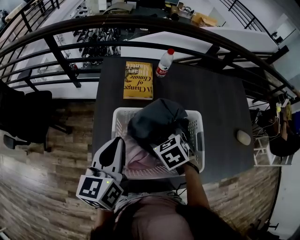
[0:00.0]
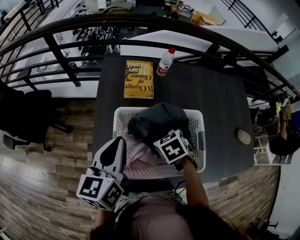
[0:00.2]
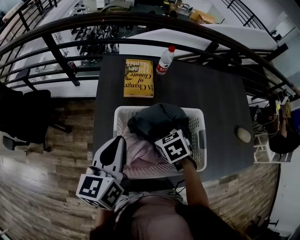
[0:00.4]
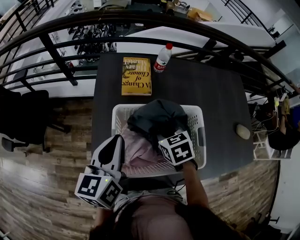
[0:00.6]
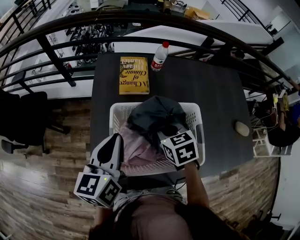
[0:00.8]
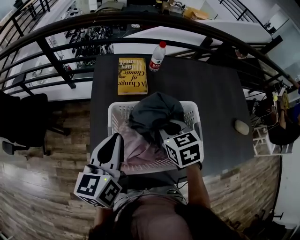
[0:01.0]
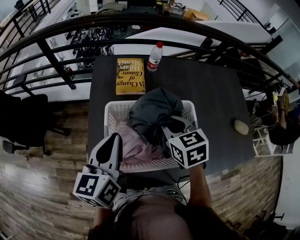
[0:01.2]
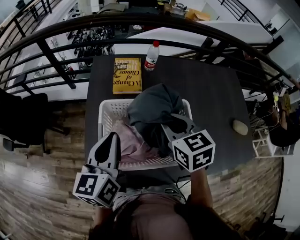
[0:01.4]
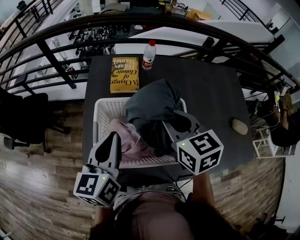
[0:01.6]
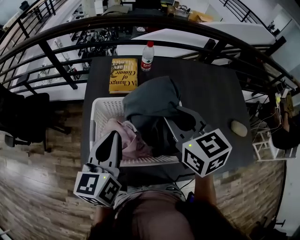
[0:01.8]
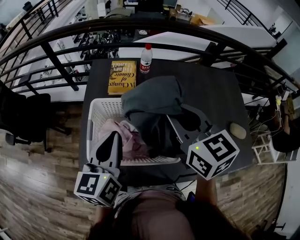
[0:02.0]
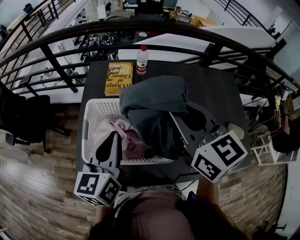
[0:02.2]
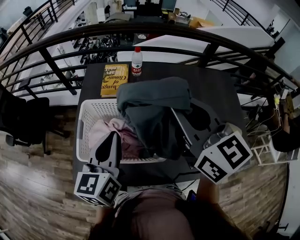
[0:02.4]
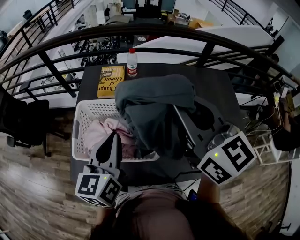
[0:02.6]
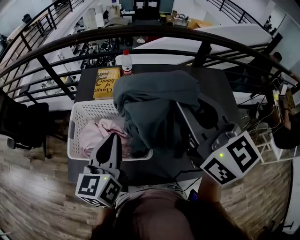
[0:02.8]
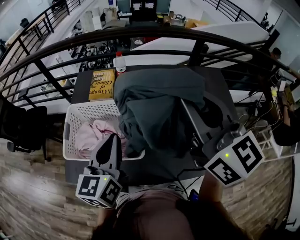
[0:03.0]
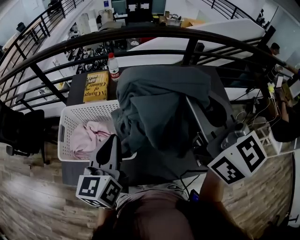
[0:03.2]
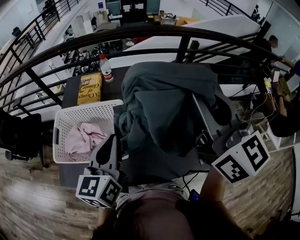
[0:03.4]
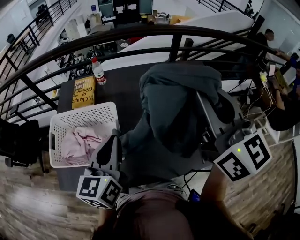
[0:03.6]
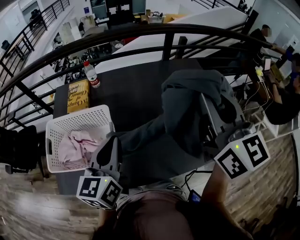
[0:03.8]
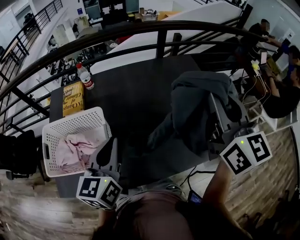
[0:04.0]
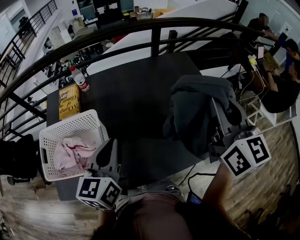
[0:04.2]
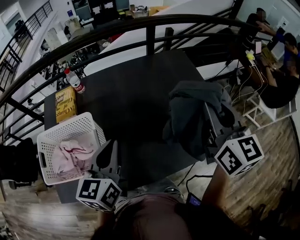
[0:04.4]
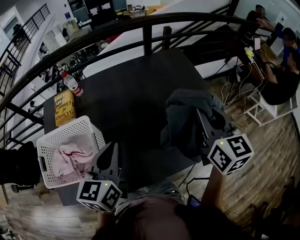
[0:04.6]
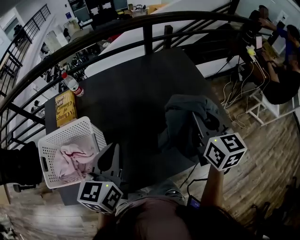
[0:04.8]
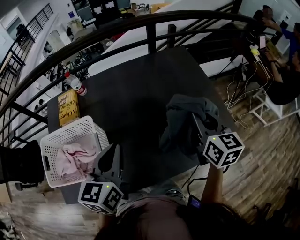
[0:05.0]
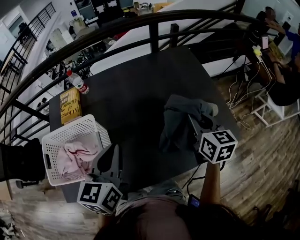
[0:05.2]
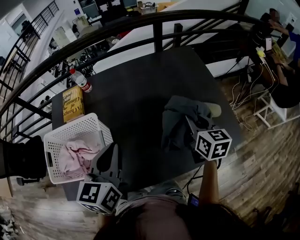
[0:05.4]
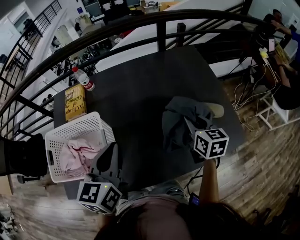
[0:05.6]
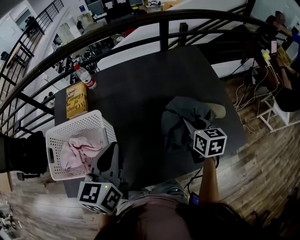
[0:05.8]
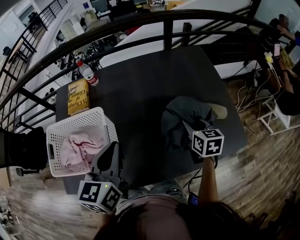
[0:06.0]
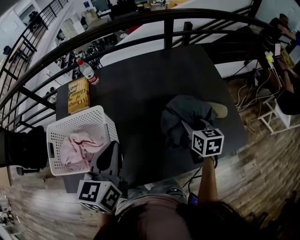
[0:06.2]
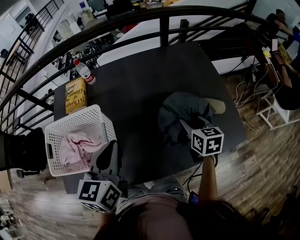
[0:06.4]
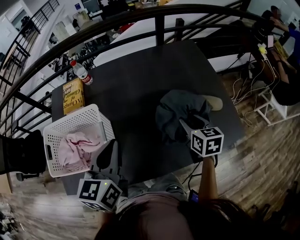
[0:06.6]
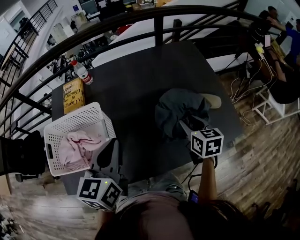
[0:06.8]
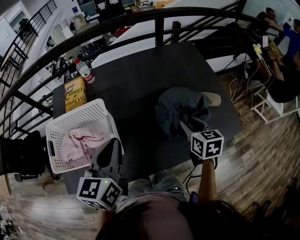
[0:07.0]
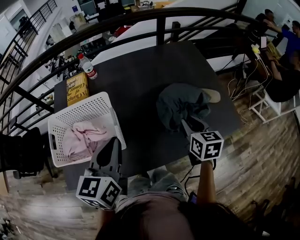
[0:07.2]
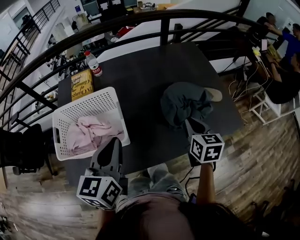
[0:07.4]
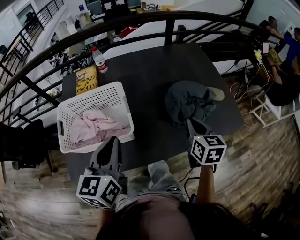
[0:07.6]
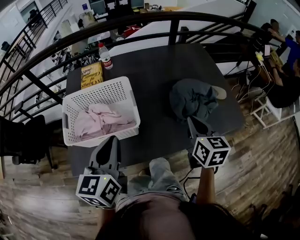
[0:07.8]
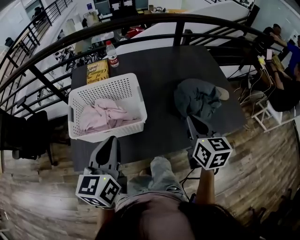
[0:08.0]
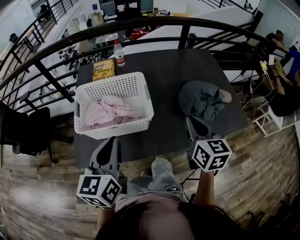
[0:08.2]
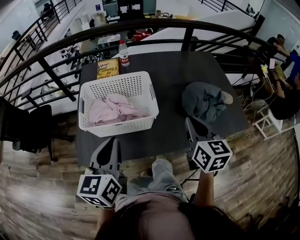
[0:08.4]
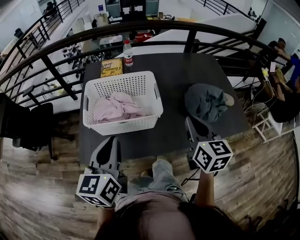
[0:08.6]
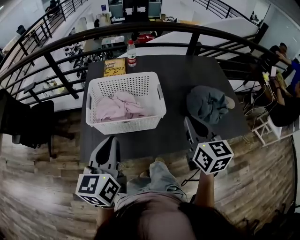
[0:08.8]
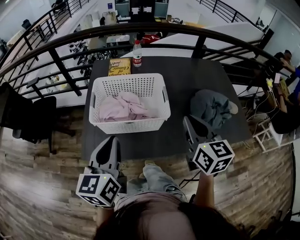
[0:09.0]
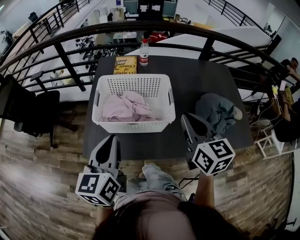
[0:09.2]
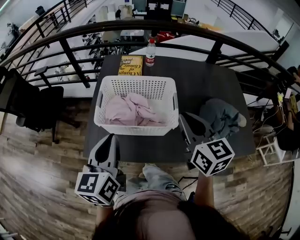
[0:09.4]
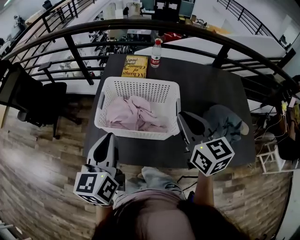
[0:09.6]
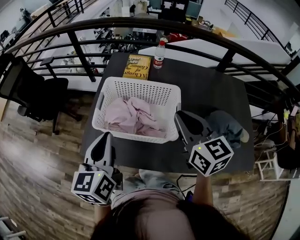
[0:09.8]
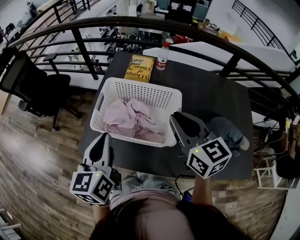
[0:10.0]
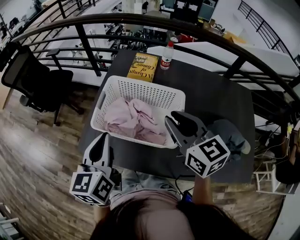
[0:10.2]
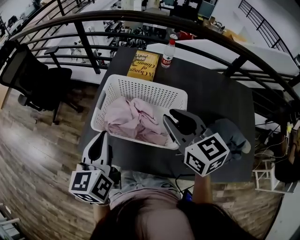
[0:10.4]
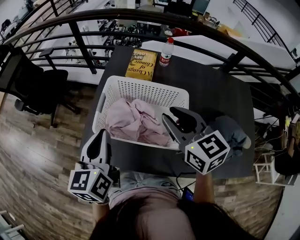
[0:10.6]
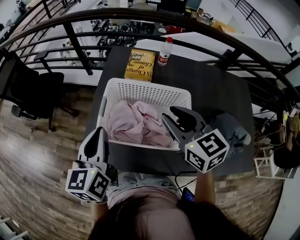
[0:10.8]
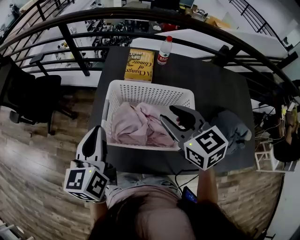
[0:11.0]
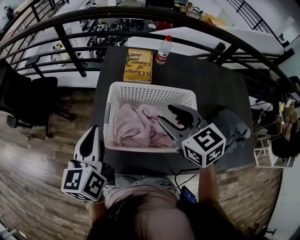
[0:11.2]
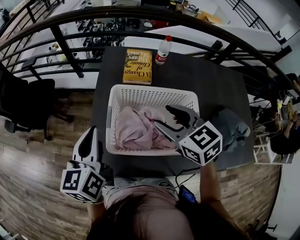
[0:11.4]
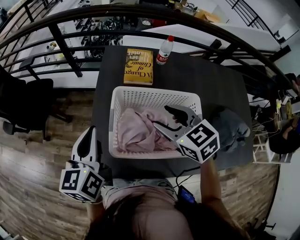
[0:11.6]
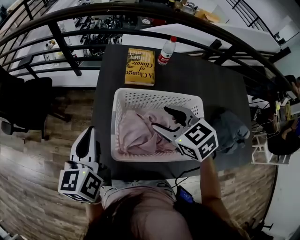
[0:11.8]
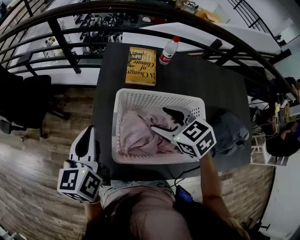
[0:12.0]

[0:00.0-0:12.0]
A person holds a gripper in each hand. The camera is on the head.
0:00.0 to 0:01.6: The right gripper moves upward, approximately 15 cm, tips its fingers upward by approximately 30 degrees, and closes its fingers. Meanwhile the left gripper goes roughly 5 cm to the right.
0:01.6 to 0:03.0: The left gripper heads to the right, covering some 15 cm. Meanwhile the right gripper heads upward, to the right and backward, covering about 30 cm, and rotates about 30 degrees.
0:03.0 to 0:04.4: The left gripper shifts some 20 cm to the right. Meanwhile the right gripper is displaced to the right by roughly 30 cm, and swivels roughly 30 degrees.
0:04.4 to 0:06.0: The right gripper moves downward, some 25 cm, and changes its angle by about 30 degrees.
0:06.0 to 0:07.6: The left gripper heads backward and to the left, covering approximately 15 cm, while the right gripper travels backward, to the left and upward by roughly 20 cm, and closes up.
0:07.6 to 0:09.0: The left gripper moves to the left and backward, roughly 20 cm, while the right gripper travels to the left and upward by roughly 20 cm, and turns by about 20 degrees.
0:09.0 to 0:10.4: The right gripper changes place by some 15 cm, and rotates about 30 degrees. Meanwhile the left gripper moves some 10 cm, and rotates some 20 degrees.
0:10.4 to 0:12.0: The left gripper goes some 20 cm forward and to the left; the right gripper shifts about 20 cm downward, forward and to the left, swivels about 30 degrees, and opens.

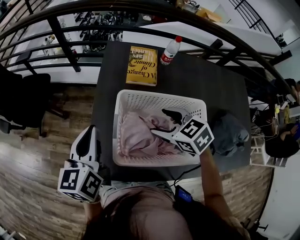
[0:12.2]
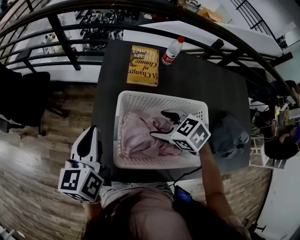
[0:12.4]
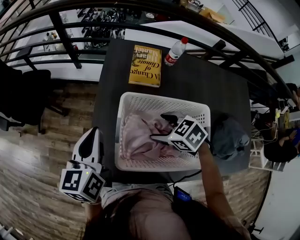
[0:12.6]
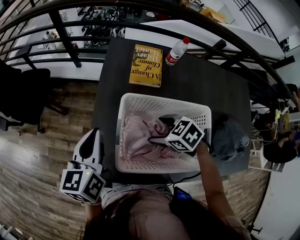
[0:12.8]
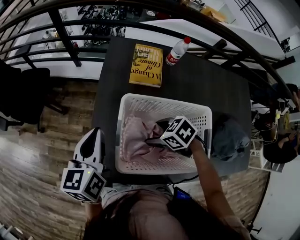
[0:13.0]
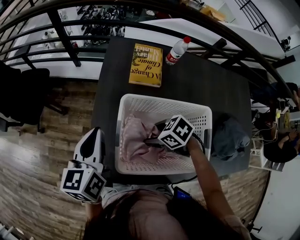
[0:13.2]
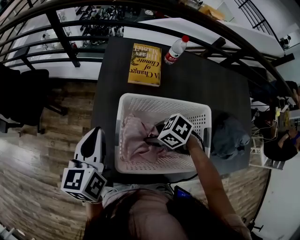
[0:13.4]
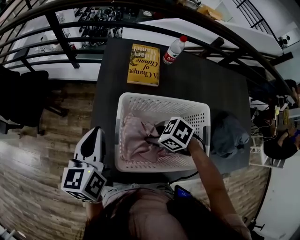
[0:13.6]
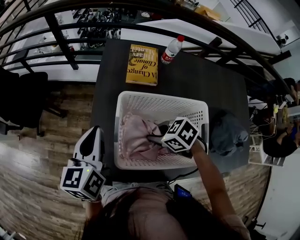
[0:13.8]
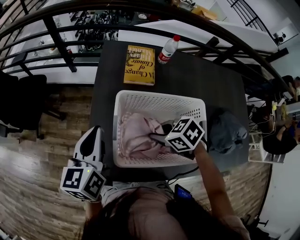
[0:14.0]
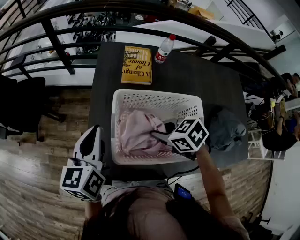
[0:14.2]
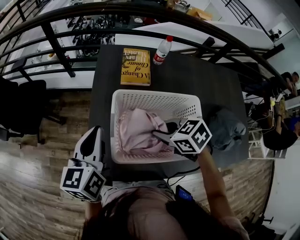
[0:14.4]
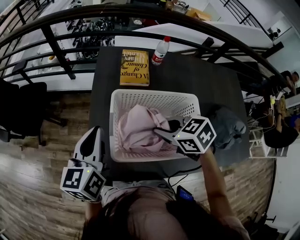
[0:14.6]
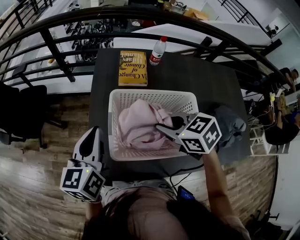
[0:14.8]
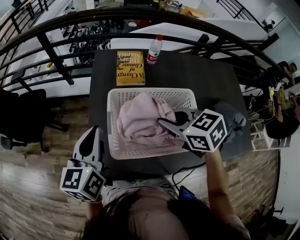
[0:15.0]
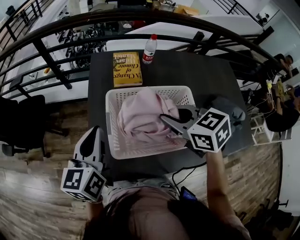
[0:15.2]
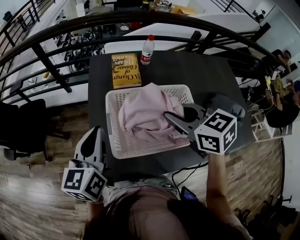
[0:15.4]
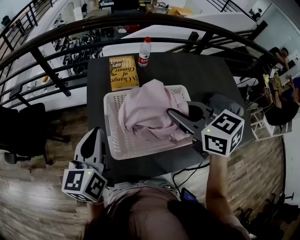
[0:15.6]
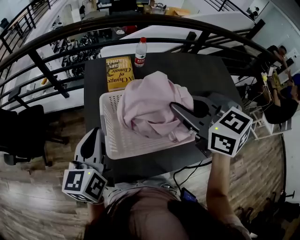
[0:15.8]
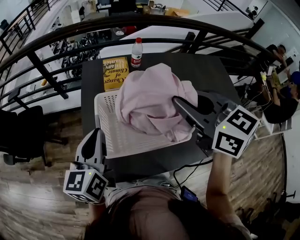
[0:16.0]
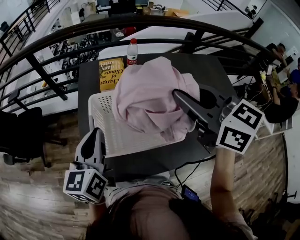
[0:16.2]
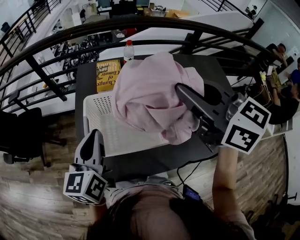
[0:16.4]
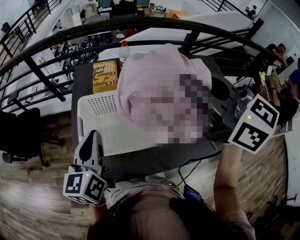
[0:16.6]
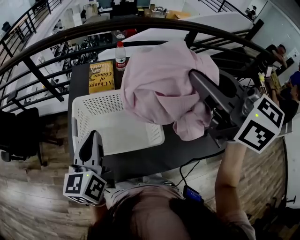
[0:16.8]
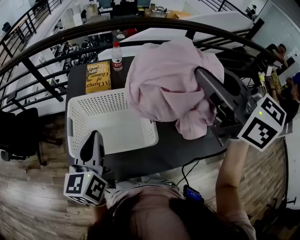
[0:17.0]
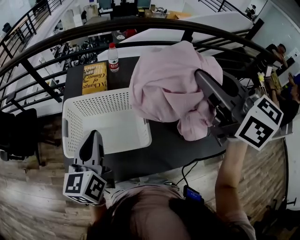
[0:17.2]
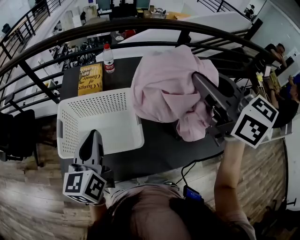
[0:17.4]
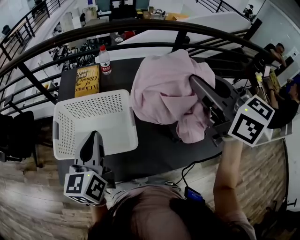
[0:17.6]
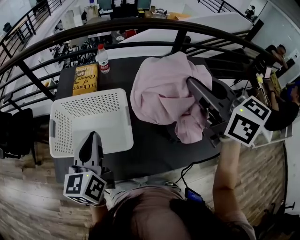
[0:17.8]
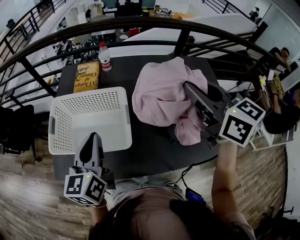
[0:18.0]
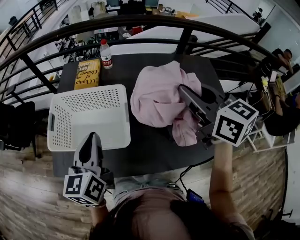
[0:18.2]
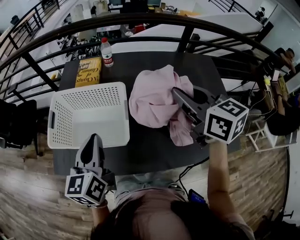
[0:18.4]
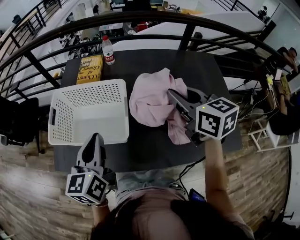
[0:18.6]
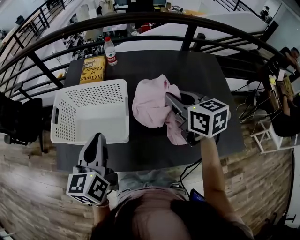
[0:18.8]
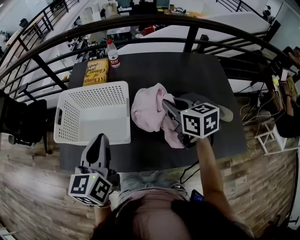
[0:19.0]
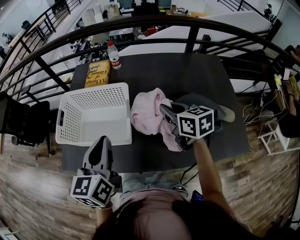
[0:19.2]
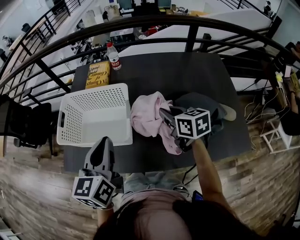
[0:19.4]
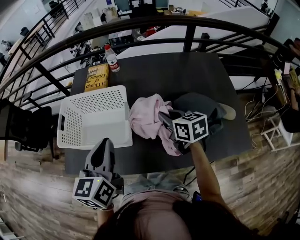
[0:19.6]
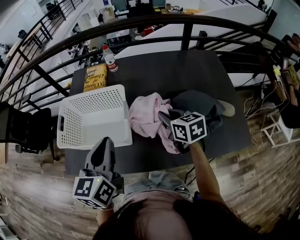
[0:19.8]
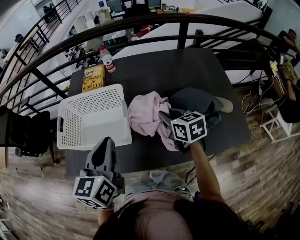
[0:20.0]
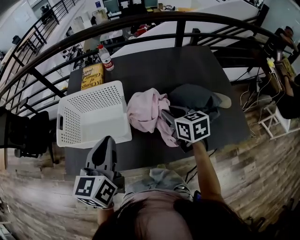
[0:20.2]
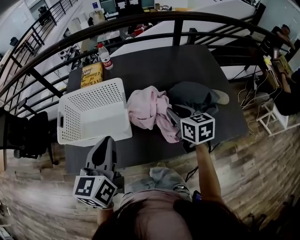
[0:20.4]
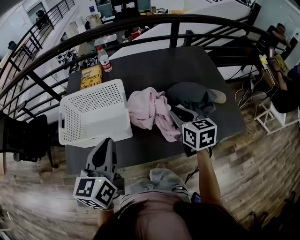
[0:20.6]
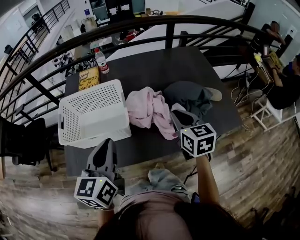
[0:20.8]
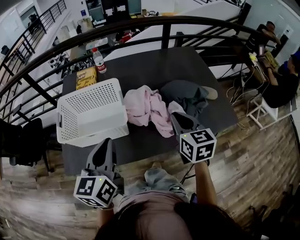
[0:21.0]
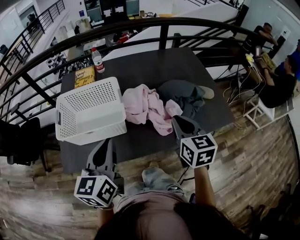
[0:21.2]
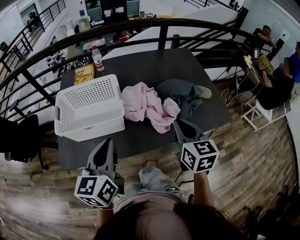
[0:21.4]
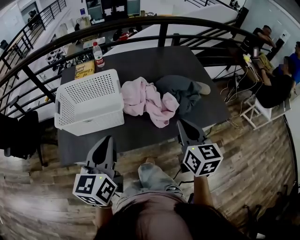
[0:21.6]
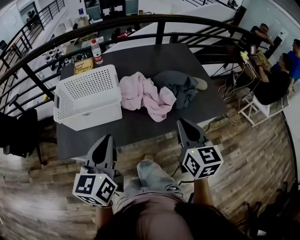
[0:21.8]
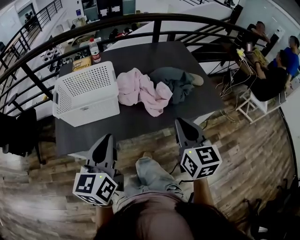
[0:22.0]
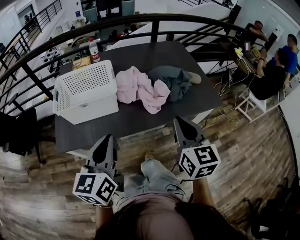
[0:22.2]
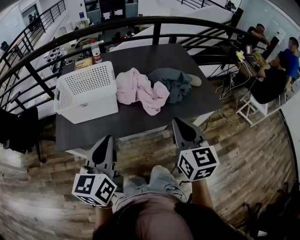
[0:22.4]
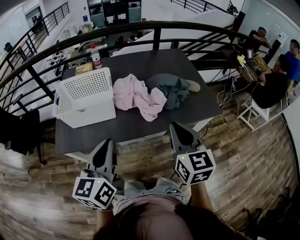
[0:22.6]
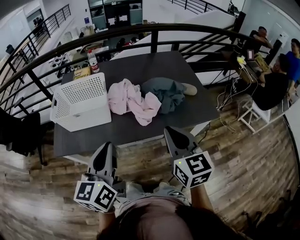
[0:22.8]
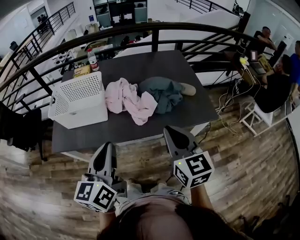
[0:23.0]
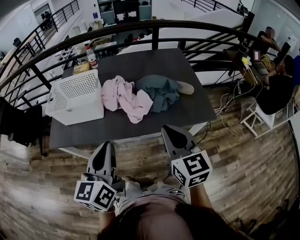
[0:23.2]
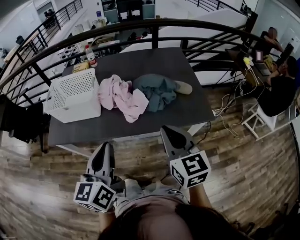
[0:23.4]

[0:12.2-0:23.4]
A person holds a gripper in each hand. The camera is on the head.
0:12.2 to 0:13.8: The right gripper moves downward, some 5 cm, turns by some 20 degrees, and closes up.
0:13.8 to 0:15.4: The right gripper moves upward, about 20 cm, and turns by about 40 degrees. The left gripper is displaced upward by roughly 5 cm.
0:15.4 to 0:17.0: The right gripper shifts roughly 30 cm upward and to the right, and swivels some 30 degrees; the left gripper shifts about 15 cm to the right.
0:17.0 to 0:18.6: The right gripper shifts about 20 cm downward and to the right, while the left gripper moves to the right and backward, some 15 cm.
0:18.6 to 0:20.2: The left gripper shifts by roughly 5 cm. Meanwhile the right gripper is displaced downward by about 15 cm.
0:20.2 to 0:21.8: The left gripper moves backward, roughly 15 cm; the right gripper is displaced backward and upward by approximately 30 cm, and rotates about 30 degrees.
0:21.8 to 0:23.4: The two grippers go roughly 15 cm to the right.
